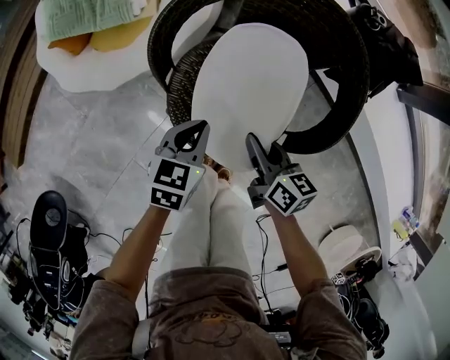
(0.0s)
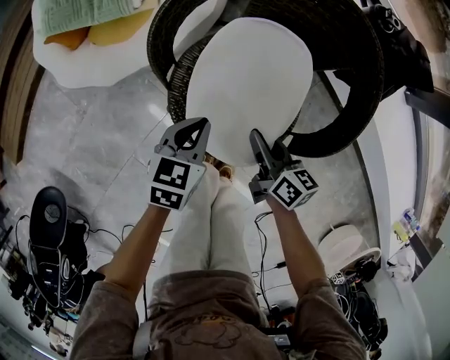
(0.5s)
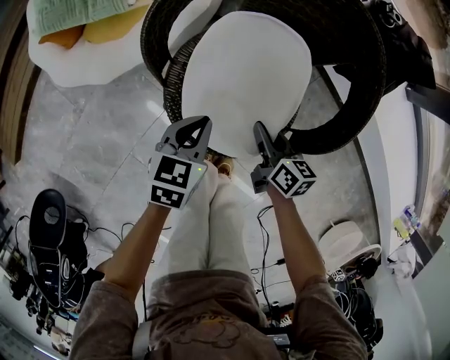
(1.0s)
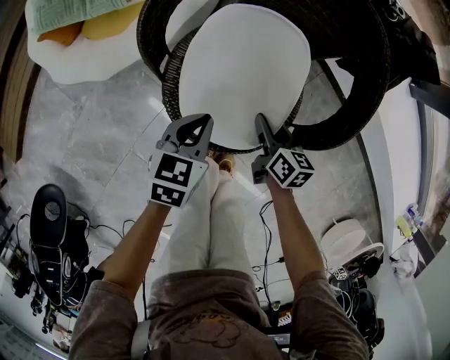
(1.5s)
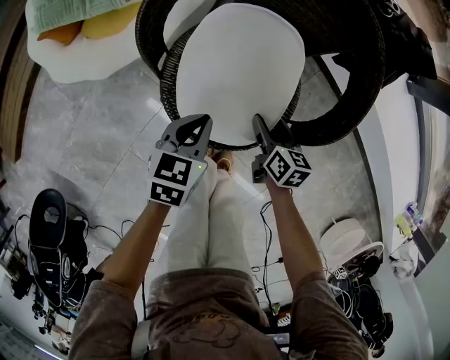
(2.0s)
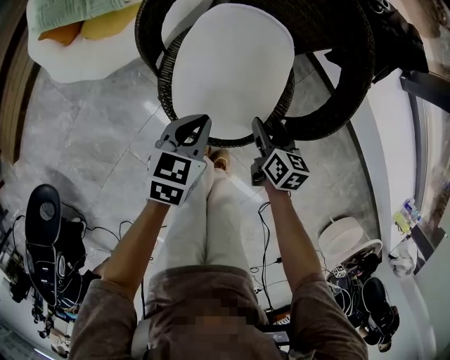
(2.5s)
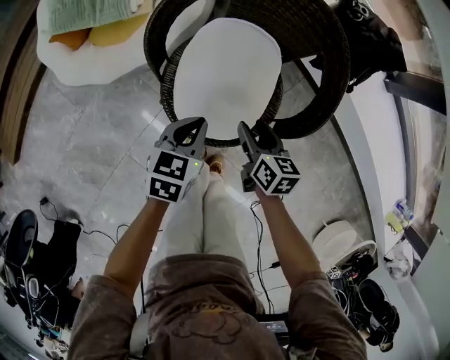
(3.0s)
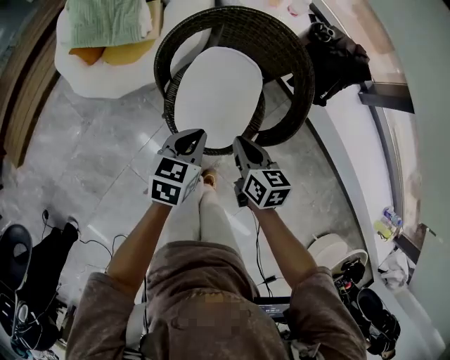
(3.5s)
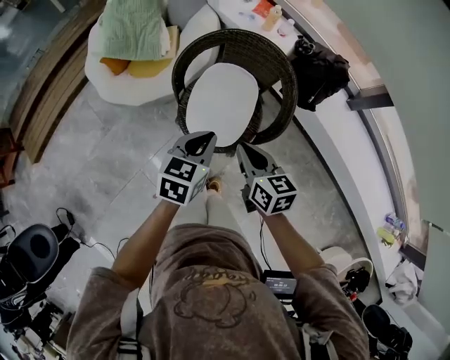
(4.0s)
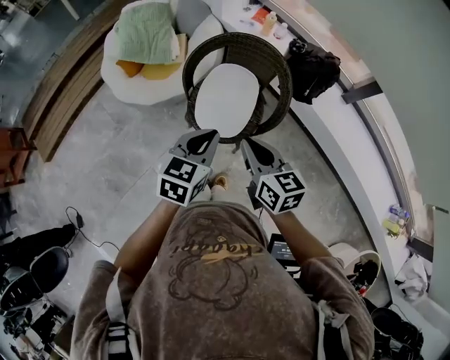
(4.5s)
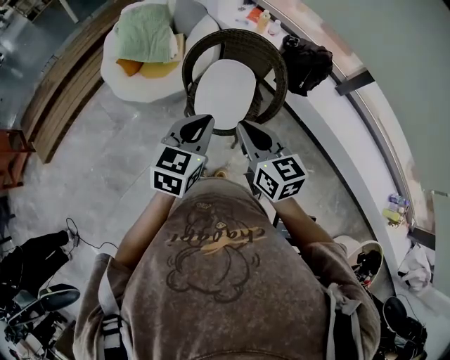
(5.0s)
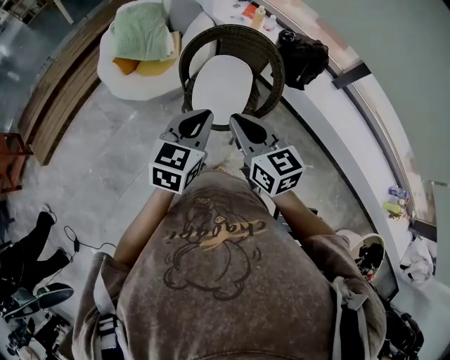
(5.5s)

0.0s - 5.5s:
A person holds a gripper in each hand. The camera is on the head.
0.0s - 2.0s: The right gripper travels downward and to the right by approximately 15 cm, and opens.
2.0s - 3.5s: The two grippers go some 20 cm upward. The right gripper closes its fingers.
3.5s - 5.5s: Both grippers move upward and backward, roughly 35 cm. The left gripper changes its angle by roughly 20 degrees. The right gripper rotates approximately 30 degrees.

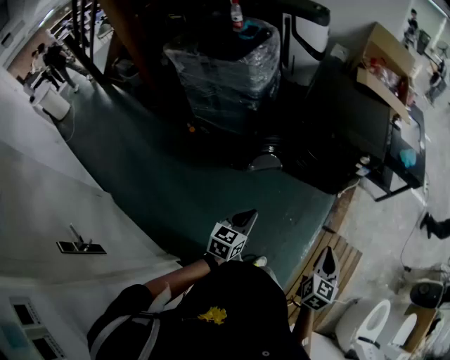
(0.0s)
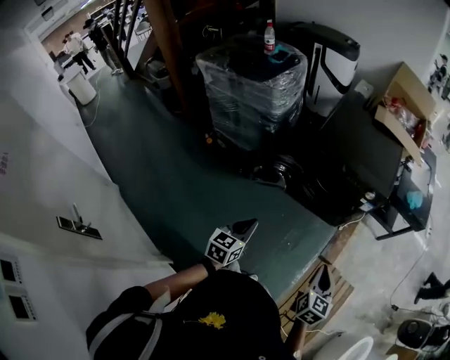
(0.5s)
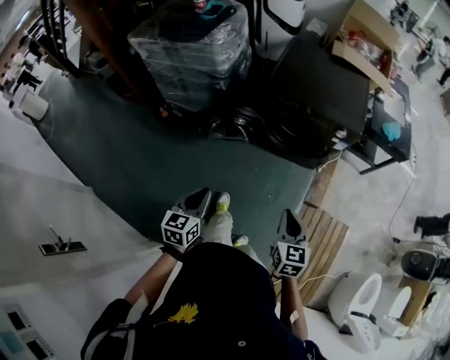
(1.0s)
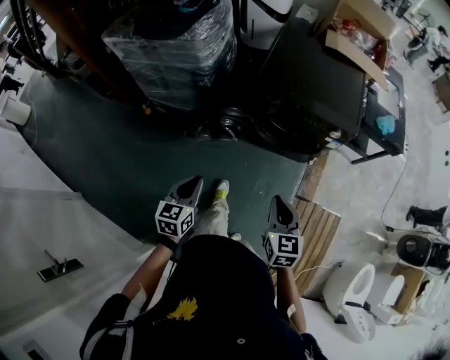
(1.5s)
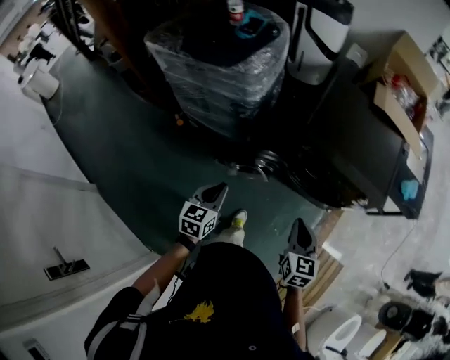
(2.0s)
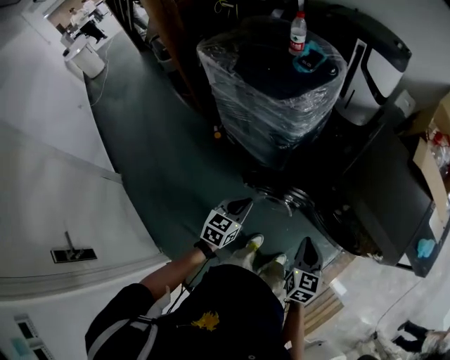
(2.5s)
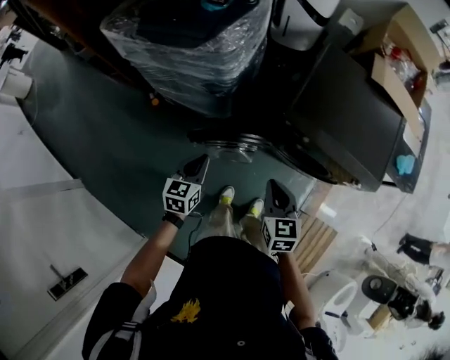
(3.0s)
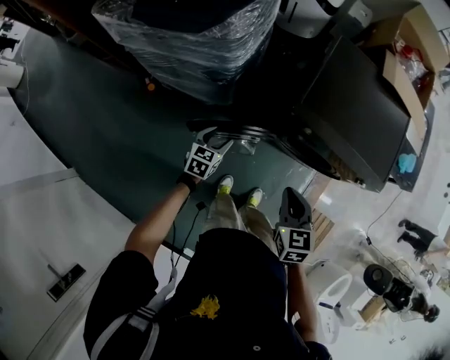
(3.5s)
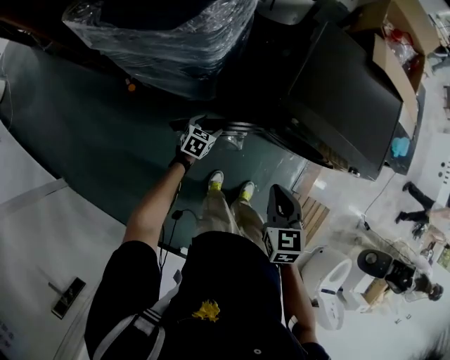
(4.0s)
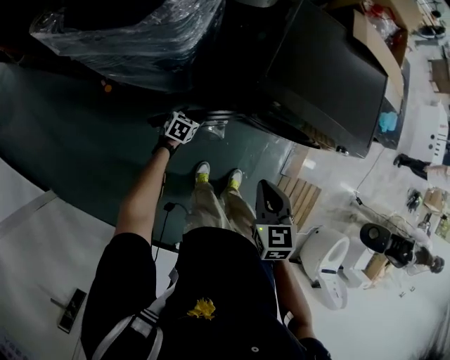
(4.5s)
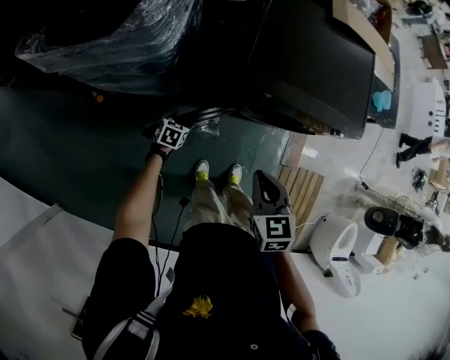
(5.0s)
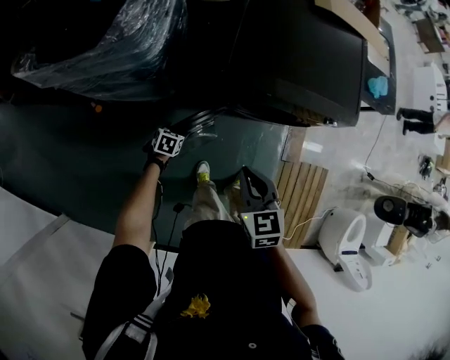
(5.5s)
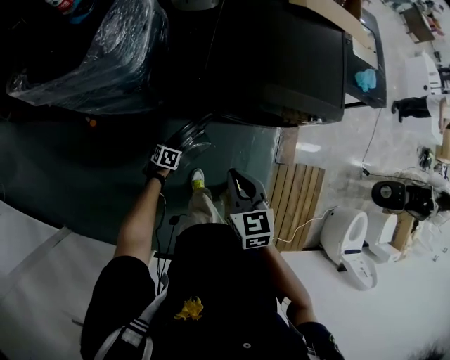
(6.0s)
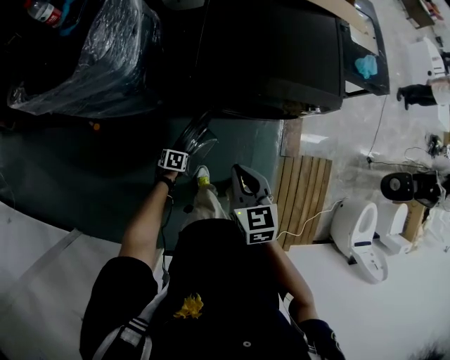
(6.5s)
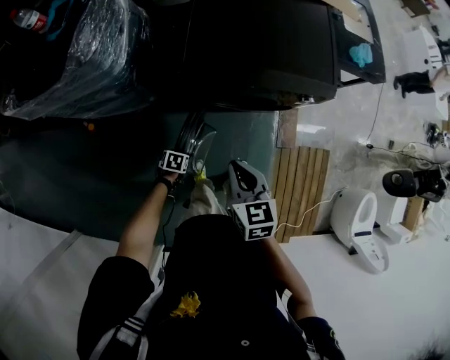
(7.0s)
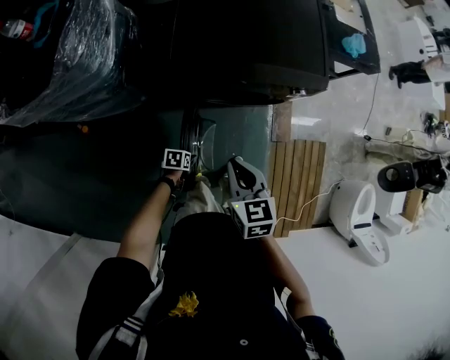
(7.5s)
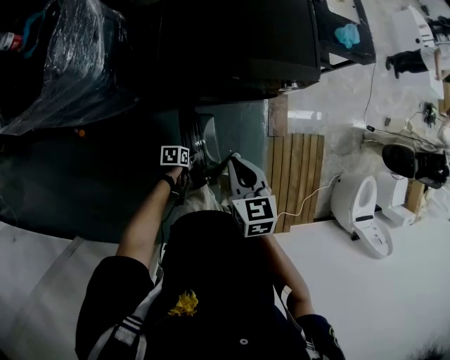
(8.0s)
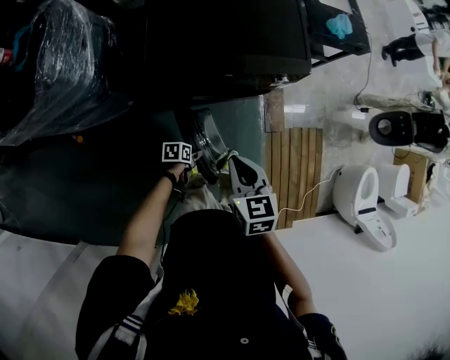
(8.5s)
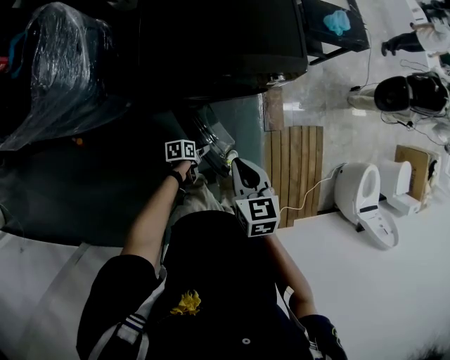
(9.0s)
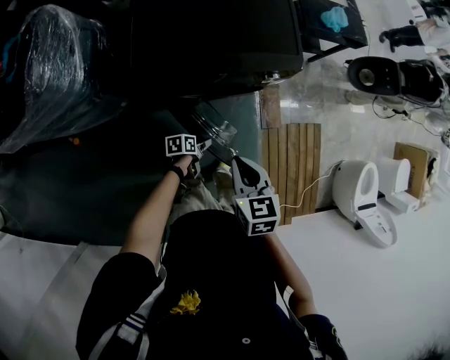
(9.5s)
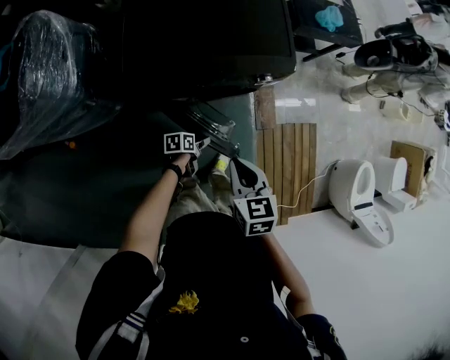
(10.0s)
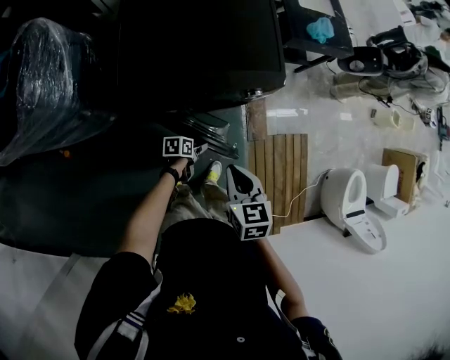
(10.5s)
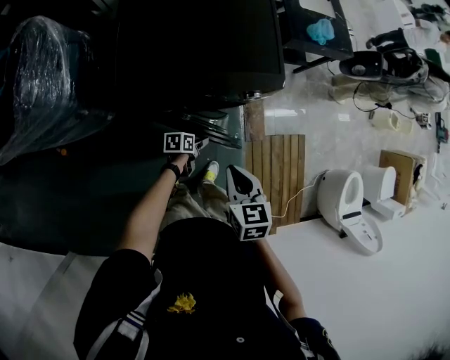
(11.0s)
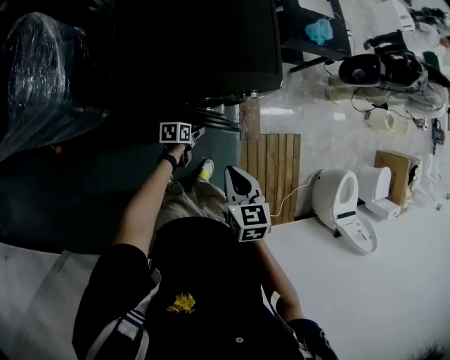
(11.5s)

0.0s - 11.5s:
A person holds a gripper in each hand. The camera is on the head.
0.0s - 2.0s: Both grippers travel together forward and to the left, approximately 30 cm.
2.0s - 4.0s: The right gripper moves forward, to the left and downward, approximately 15 cm. The left gripper travels downward and forward by some 35 cm, turns by about 30 degrees, and opens its fingers.
4.0s - 6.0s: The right gripper travels to the right by roughly 5 cm. Meanwhile the left gripper is displaced downward, backward and to the right by approximately 15 cm, and changes its angle by some 30 degrees.
6.0s - 7.5s: The right gripper ends up roughly 10 cm from where it was. Meanwhile the left gripper moves some 15 cm.
7.5s - 9.5s: The left gripper shifts roughly 15 cm to the right and forward, and swivels some 20 degrees; the right gripper moves to the right, about 10 cm.
9.5s - 11.5s: The right gripper heads forward, covering some 5 cm. Meanwhile the left gripper travels forward by approximately 15 cm.

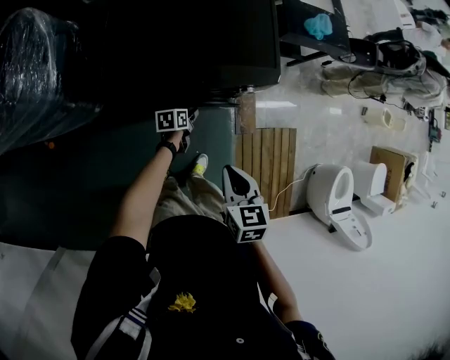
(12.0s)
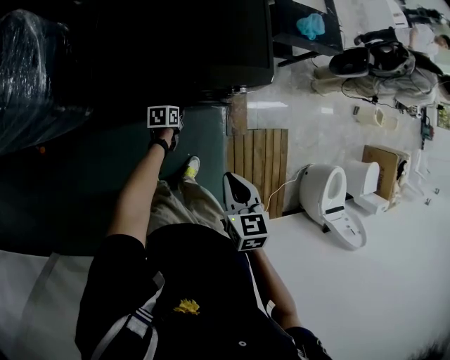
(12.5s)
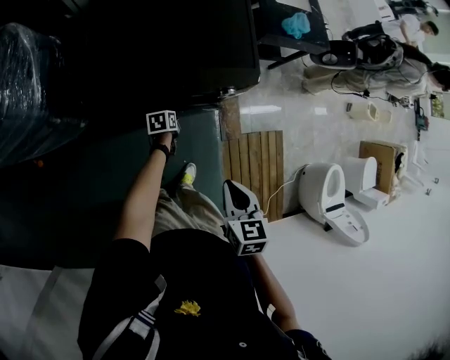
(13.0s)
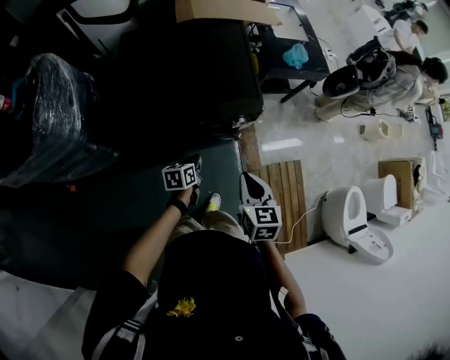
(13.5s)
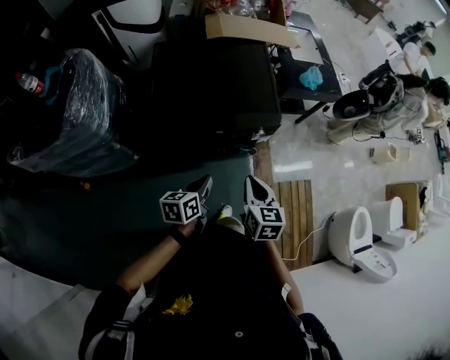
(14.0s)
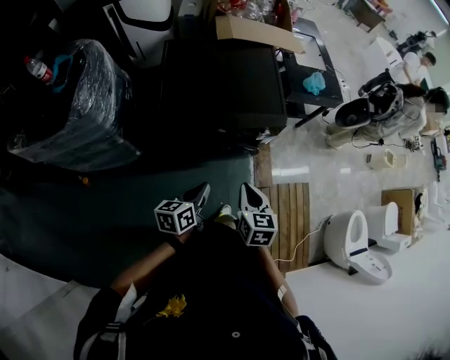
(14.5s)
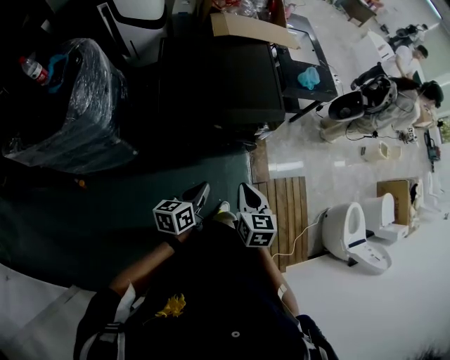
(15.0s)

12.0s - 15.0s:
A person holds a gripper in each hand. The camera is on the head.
12.0s - 13.5s: The right gripper shifts approximately 5 cm upward. The left gripper is displaced upward by approximately 15 cm, and closes.
13.5s - 15.0s: The right gripper travels to the left and backward by about 15 cm; the left gripper is displaced upward, backward and to the left by about 25 cm.

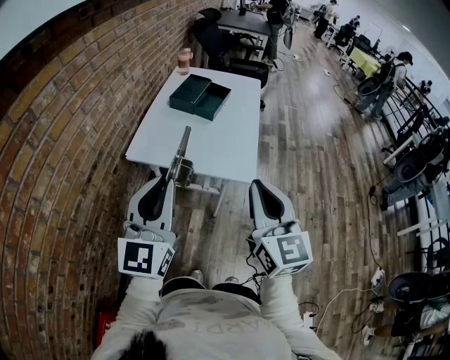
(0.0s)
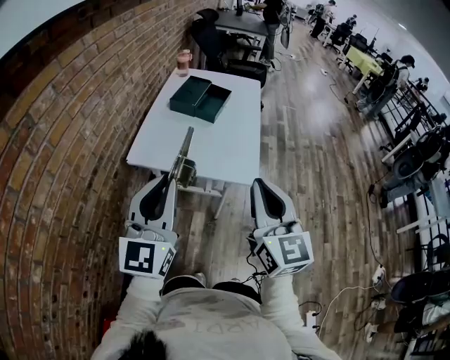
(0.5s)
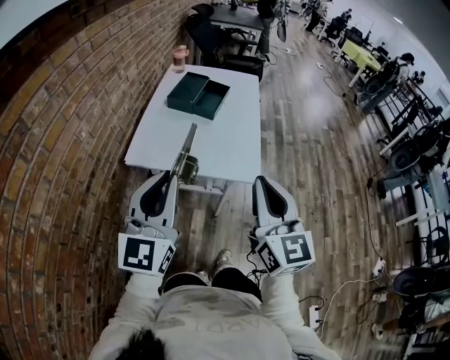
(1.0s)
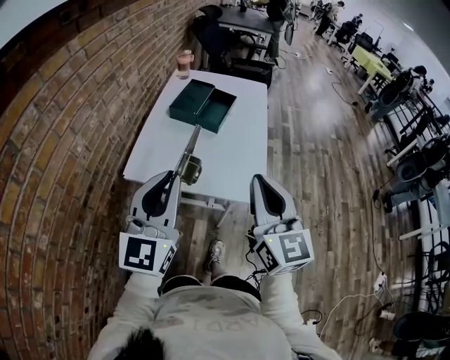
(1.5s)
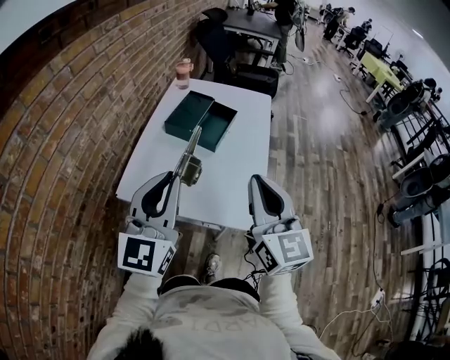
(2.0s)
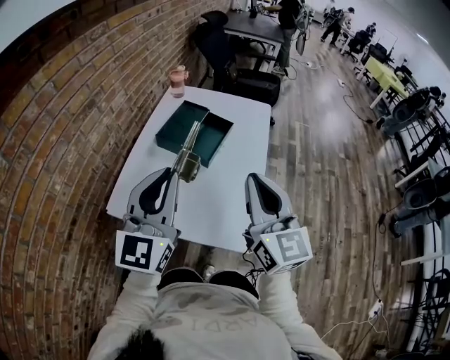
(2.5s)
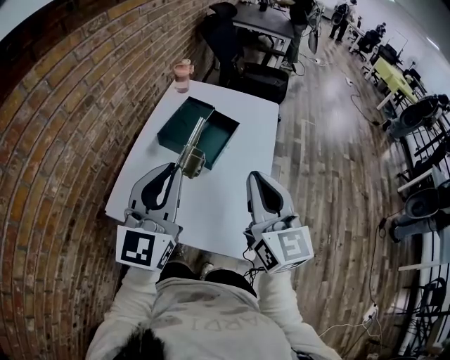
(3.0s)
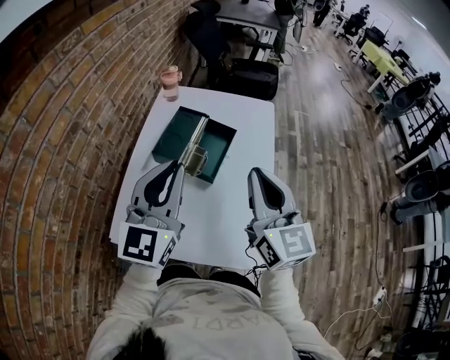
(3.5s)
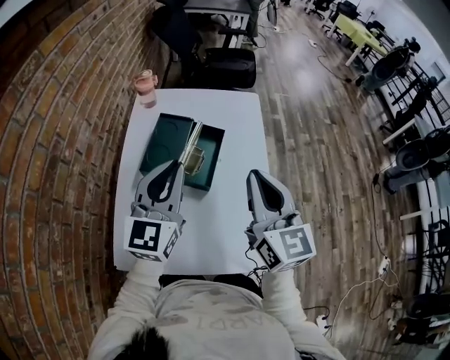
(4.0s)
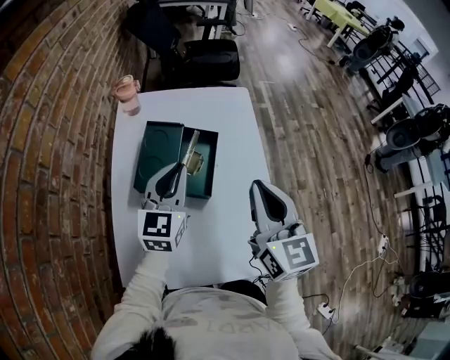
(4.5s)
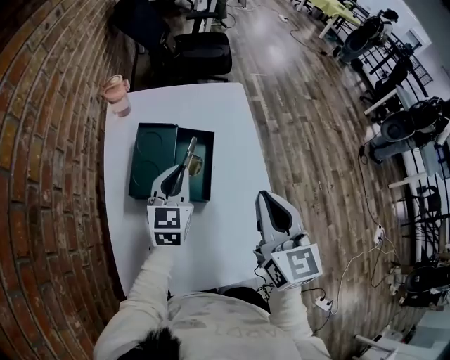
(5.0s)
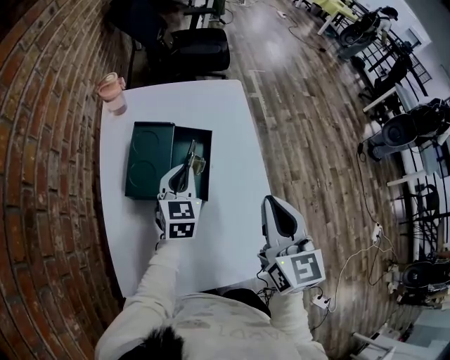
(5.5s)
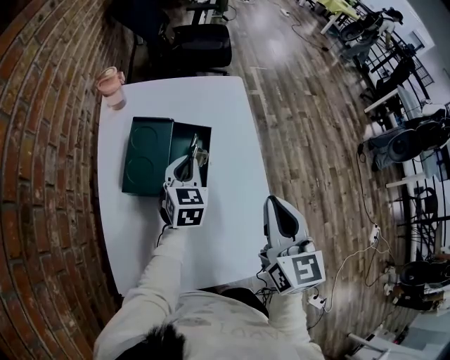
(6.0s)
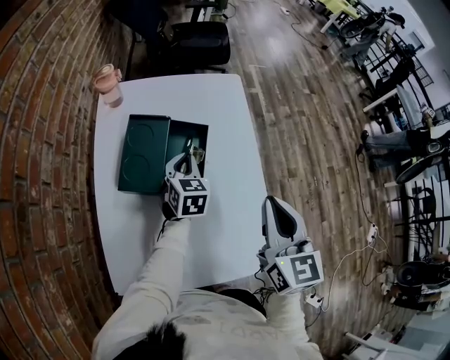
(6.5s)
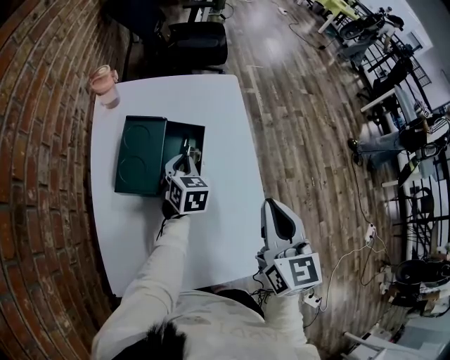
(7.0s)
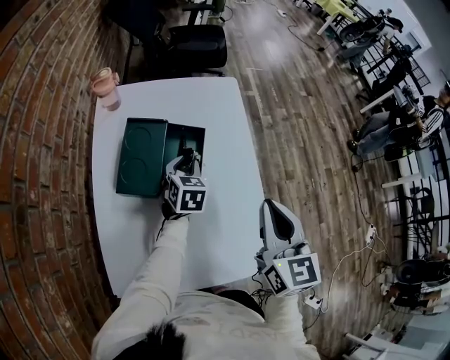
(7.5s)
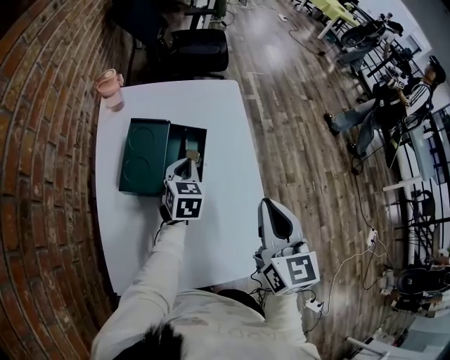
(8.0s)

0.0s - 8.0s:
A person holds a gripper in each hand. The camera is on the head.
0.0s - 2.0s: Both grippers travel together forward, approximately 25 cm.
2.0s - 4.0s: The grippers both shift forward by roughly 30 cm.
4.0s - 6.0s: The left gripper moves downward and forward, some 25 cm, and swivels some 30 degrees. Meanwhile the right gripper goes roughly 5 cm downward, and rotates about 20 degrees.
6.0s - 8.0s: There are only small adjustments of the grippers.
